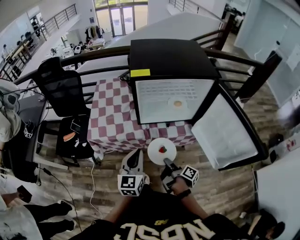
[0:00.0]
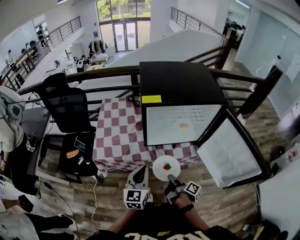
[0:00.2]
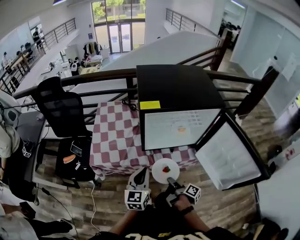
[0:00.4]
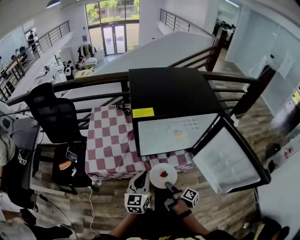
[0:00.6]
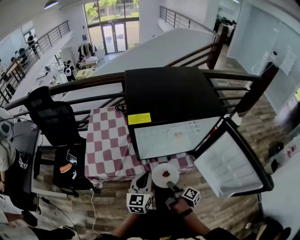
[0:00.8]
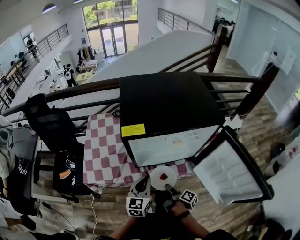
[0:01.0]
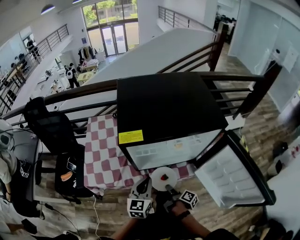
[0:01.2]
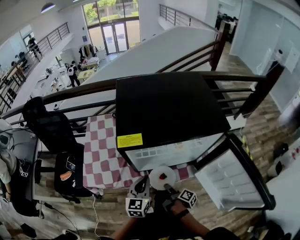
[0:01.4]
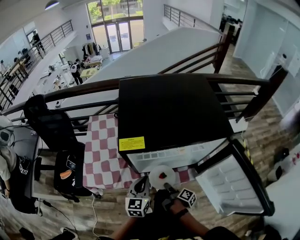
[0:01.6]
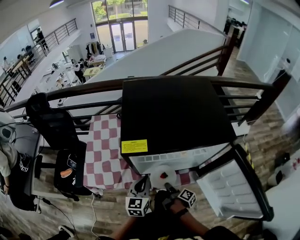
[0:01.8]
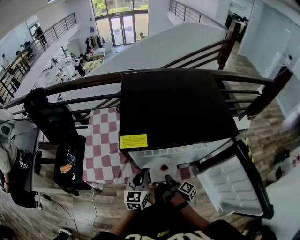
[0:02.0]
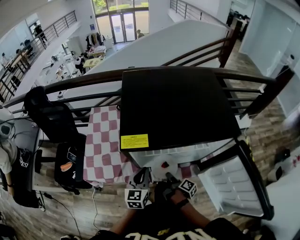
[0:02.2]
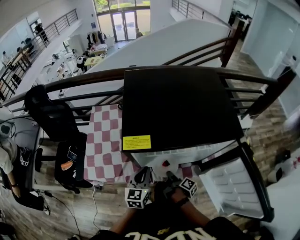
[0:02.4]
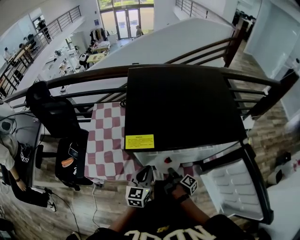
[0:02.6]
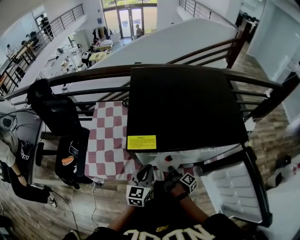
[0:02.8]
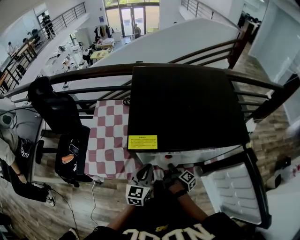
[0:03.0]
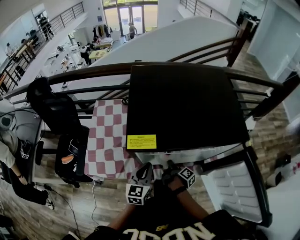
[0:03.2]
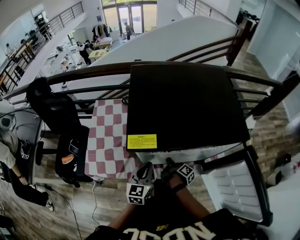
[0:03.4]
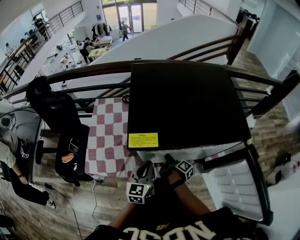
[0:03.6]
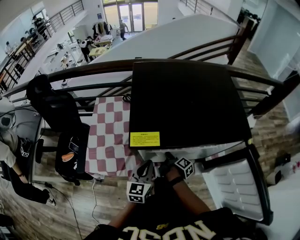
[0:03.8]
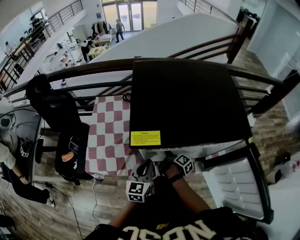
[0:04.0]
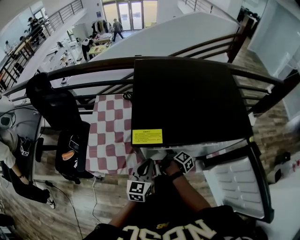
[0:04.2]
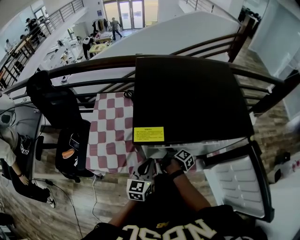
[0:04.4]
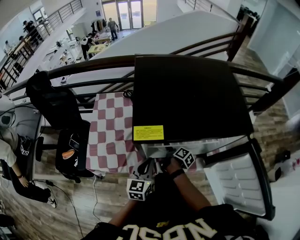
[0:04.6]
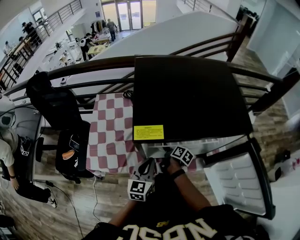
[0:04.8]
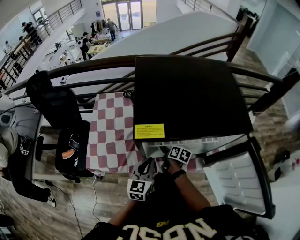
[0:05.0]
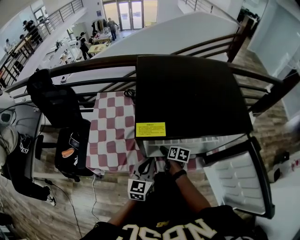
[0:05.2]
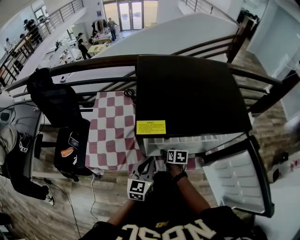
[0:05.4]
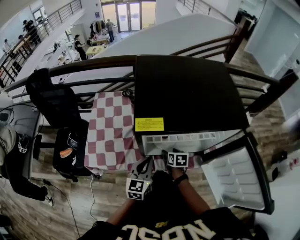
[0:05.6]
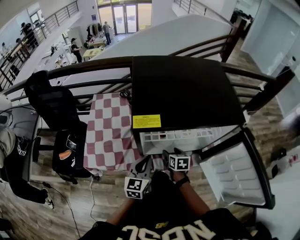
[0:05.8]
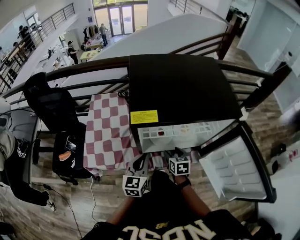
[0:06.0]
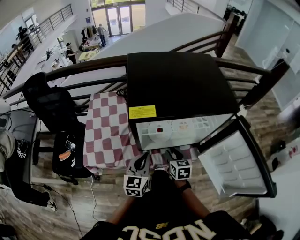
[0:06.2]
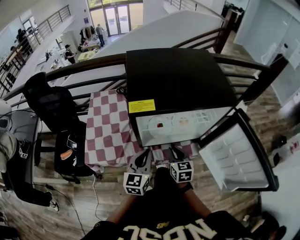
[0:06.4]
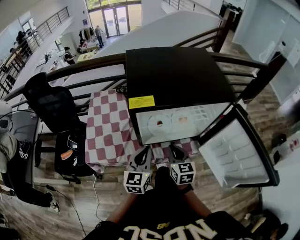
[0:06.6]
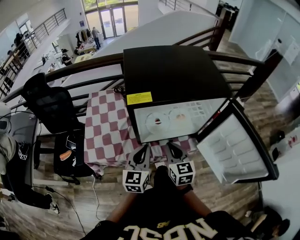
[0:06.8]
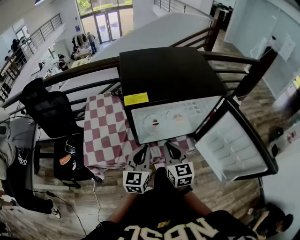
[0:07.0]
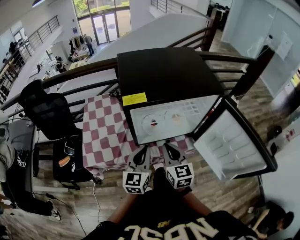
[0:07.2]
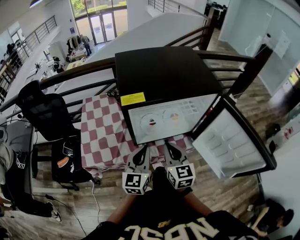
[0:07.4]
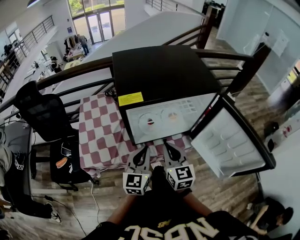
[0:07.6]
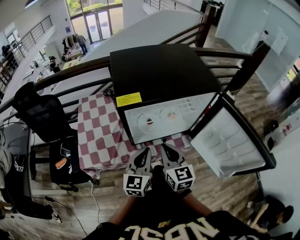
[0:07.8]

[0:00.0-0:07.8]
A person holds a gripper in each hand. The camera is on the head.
0:00.0 to 0:01.6: The left gripper ends up approximately 20 cm from where it was.
0:06.2 to 0:07.8: The left gripper heads upward, covering roughly 5 cm.

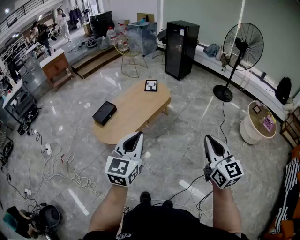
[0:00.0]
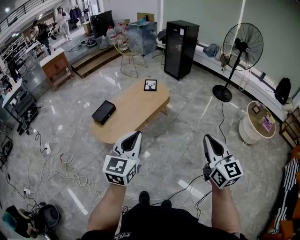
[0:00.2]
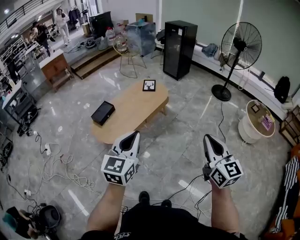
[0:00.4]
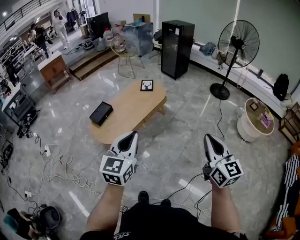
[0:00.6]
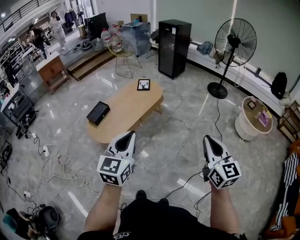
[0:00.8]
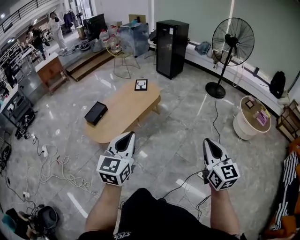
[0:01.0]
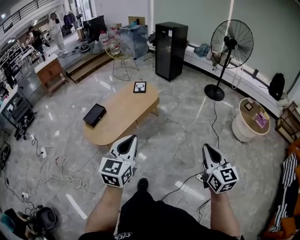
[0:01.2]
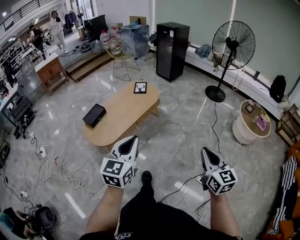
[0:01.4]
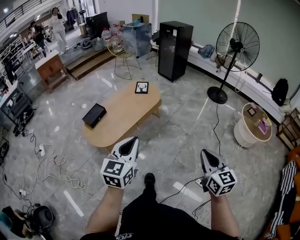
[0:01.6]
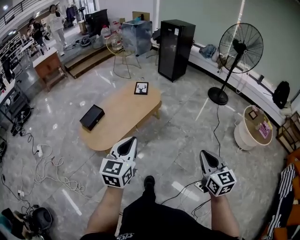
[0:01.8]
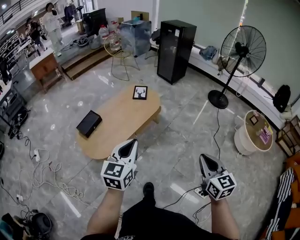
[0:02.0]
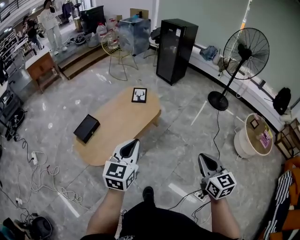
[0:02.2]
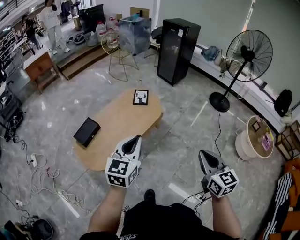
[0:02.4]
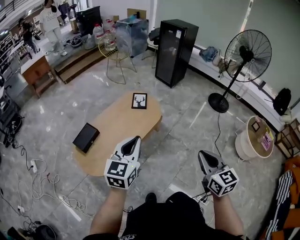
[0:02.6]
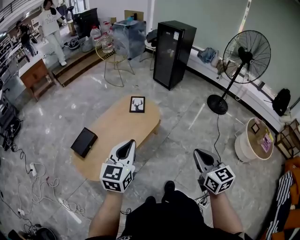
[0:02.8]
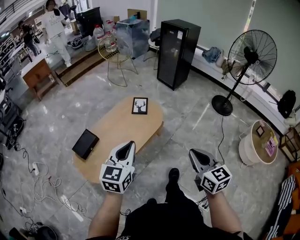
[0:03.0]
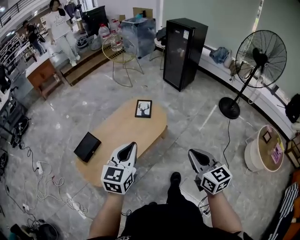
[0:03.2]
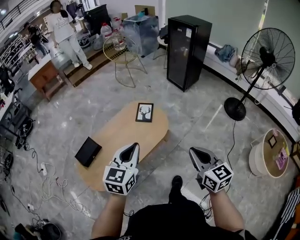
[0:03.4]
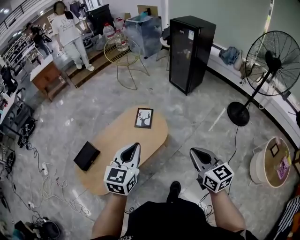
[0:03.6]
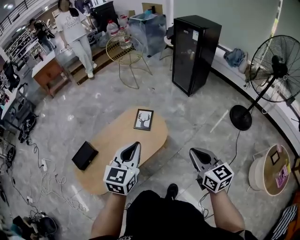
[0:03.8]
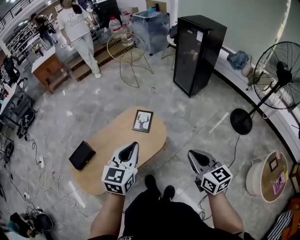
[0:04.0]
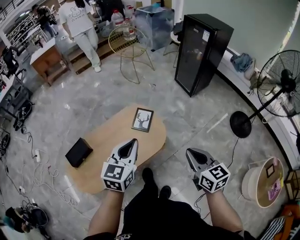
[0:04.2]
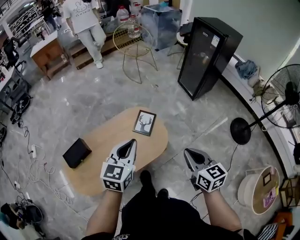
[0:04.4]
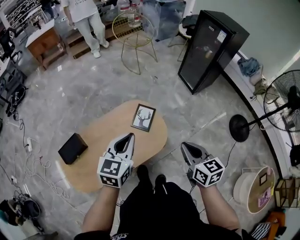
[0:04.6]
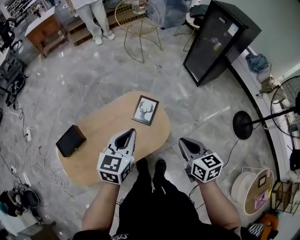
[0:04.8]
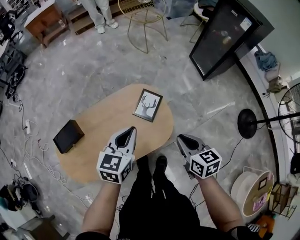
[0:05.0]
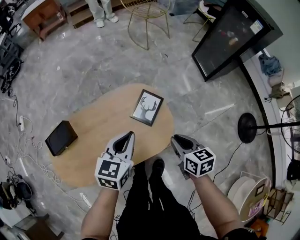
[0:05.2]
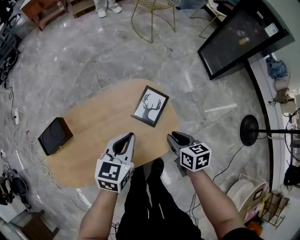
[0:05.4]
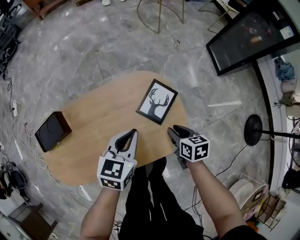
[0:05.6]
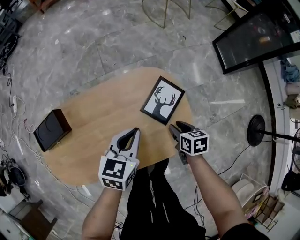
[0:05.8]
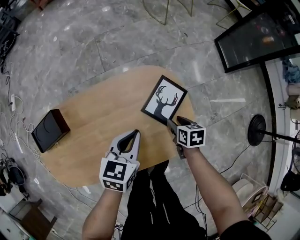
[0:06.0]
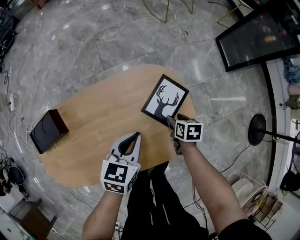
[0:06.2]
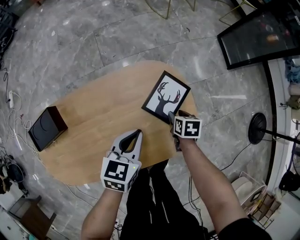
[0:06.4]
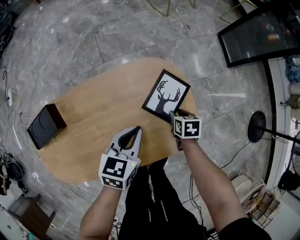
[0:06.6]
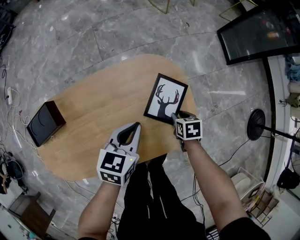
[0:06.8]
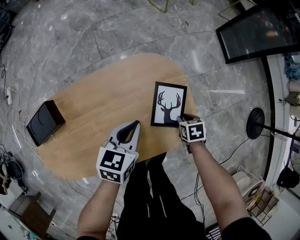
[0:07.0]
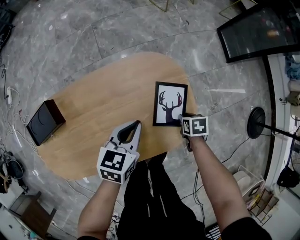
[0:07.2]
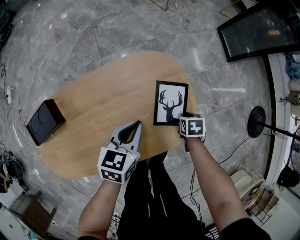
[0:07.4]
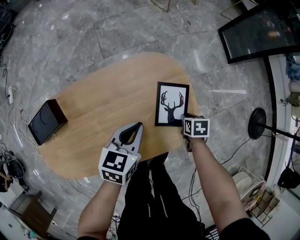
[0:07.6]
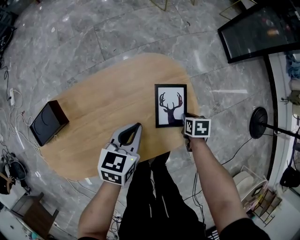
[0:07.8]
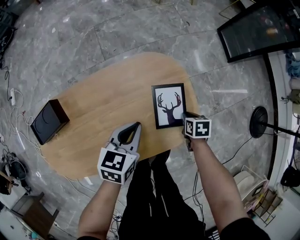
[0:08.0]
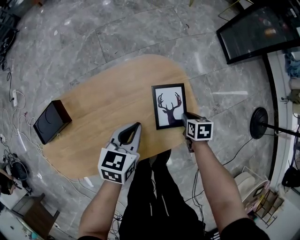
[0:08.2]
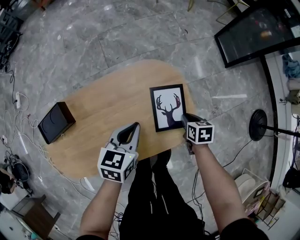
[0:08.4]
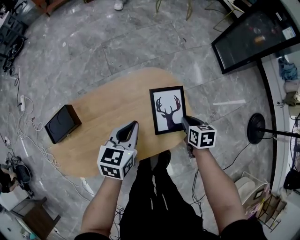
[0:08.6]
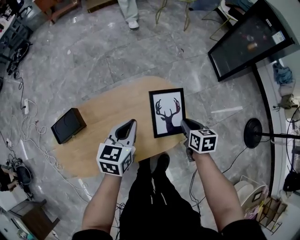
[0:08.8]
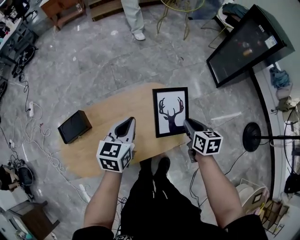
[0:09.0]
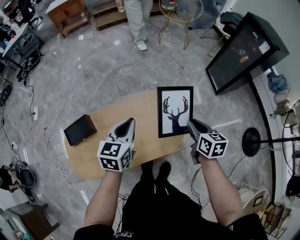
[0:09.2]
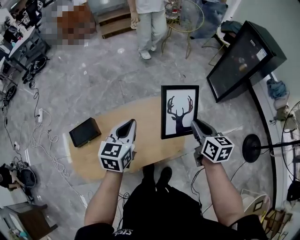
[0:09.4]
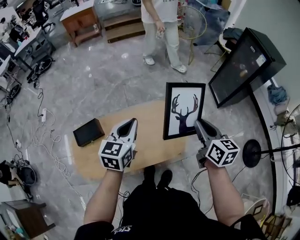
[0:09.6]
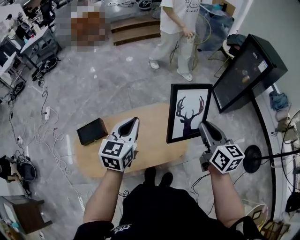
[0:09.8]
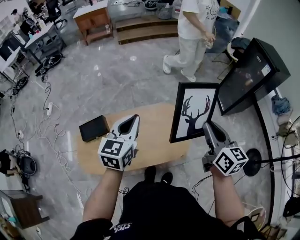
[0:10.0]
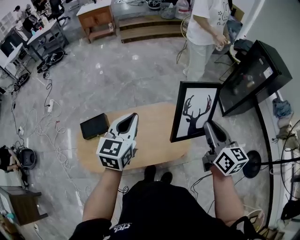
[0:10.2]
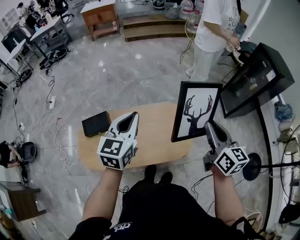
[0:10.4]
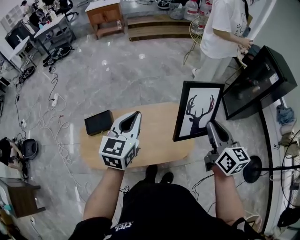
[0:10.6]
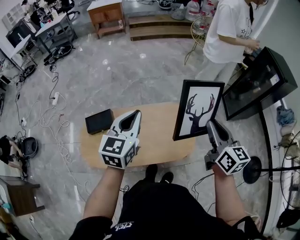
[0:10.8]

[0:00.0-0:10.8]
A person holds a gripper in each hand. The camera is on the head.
0:00.0 to 0:01.6: The left gripper travels to the right by roughly 5 cm; the right gripper shifts approximately 15 cm to the right and downward.
0:01.6 to 0:03.0: The grippers both shift forward by some 40 cm.
0:03.0 to 0:04.6: The grippers both shift forward by some 40 cm. The right gripper swivels about 20 degrees.
0:04.6 to 0:06.2: The left gripper heads downward, covering approximately 35 cm, and changes its angle by some 20 degrees; the right gripper shifts some 60 cm downward and forward, tips its fingers downward by some 40 degrees, and opens up.
0:06.2 to 0:07.8: The right gripper moves some 10 cm, and closes up.
0:07.8 to 0:09.2: The grippers both shift upward by roughly 35 cm. The right gripper tips its fingers upward by approximately 40 degrees.
0:09.2 to 0:10.8: Both grippers move upward, some 20 cm. The right gripper changes its angle by approximately 30 degrees.

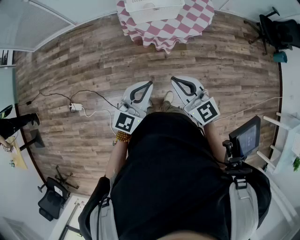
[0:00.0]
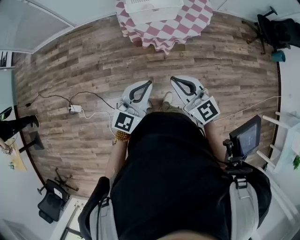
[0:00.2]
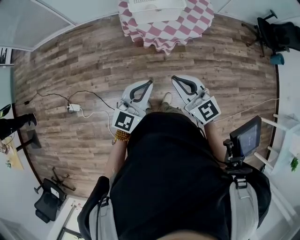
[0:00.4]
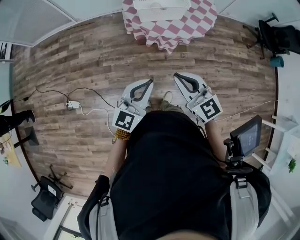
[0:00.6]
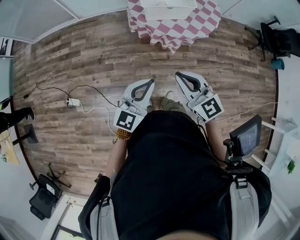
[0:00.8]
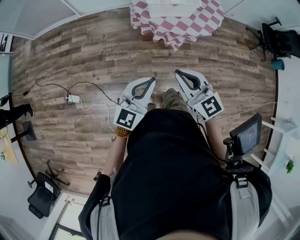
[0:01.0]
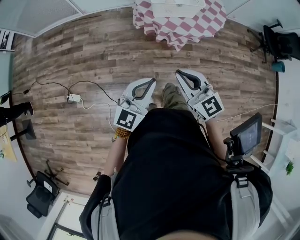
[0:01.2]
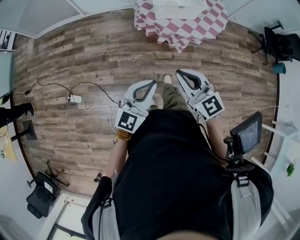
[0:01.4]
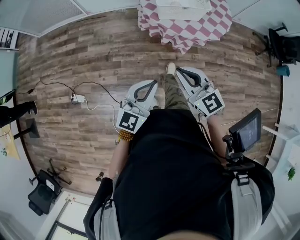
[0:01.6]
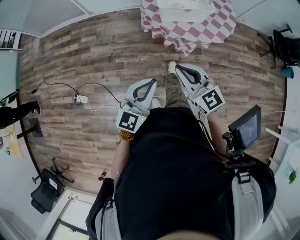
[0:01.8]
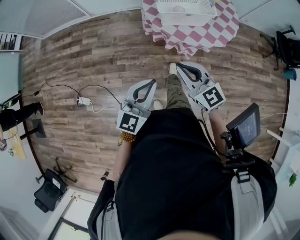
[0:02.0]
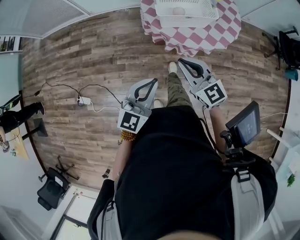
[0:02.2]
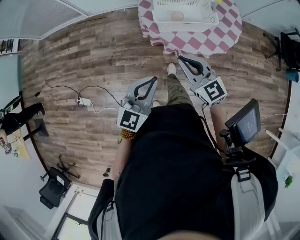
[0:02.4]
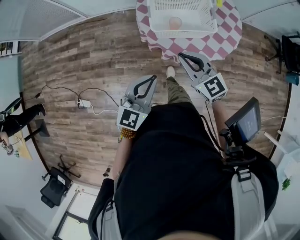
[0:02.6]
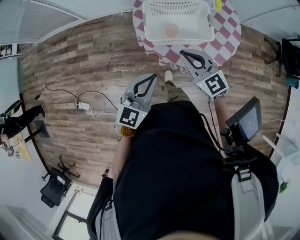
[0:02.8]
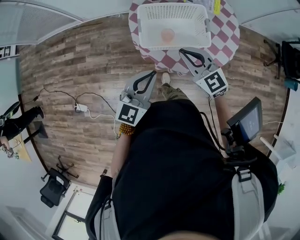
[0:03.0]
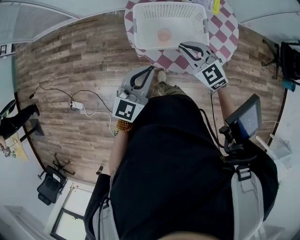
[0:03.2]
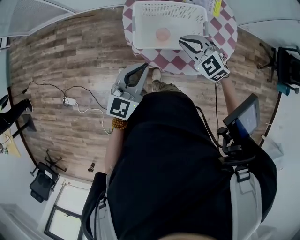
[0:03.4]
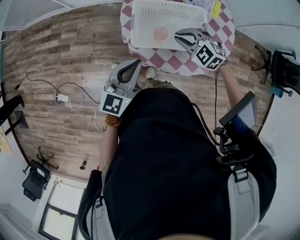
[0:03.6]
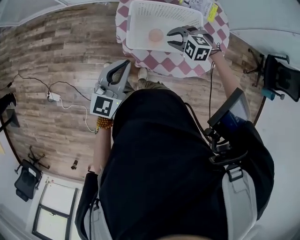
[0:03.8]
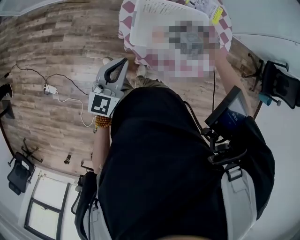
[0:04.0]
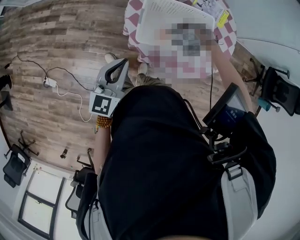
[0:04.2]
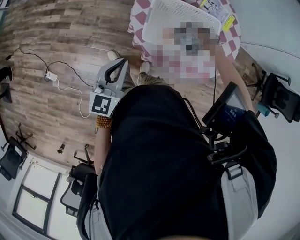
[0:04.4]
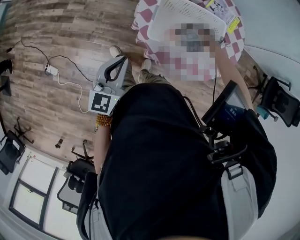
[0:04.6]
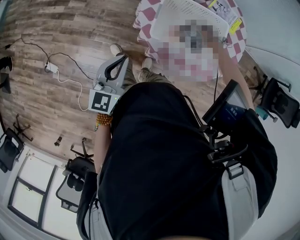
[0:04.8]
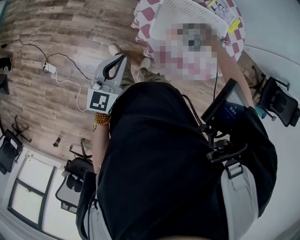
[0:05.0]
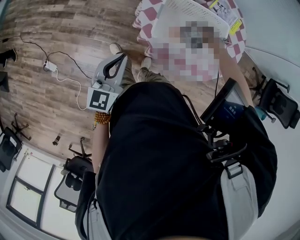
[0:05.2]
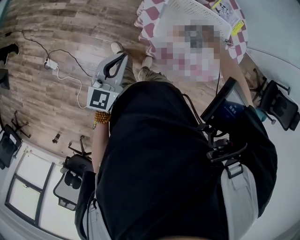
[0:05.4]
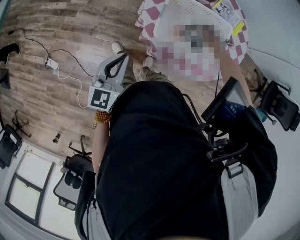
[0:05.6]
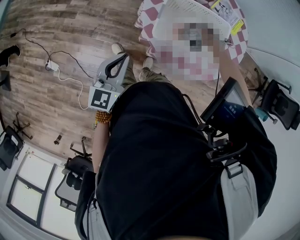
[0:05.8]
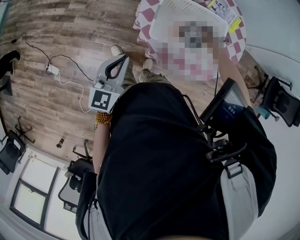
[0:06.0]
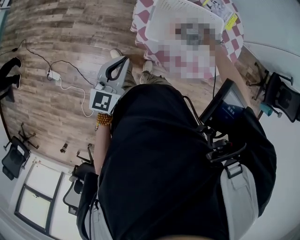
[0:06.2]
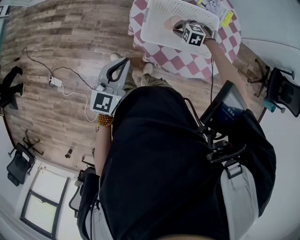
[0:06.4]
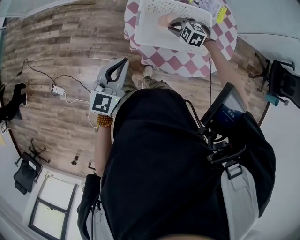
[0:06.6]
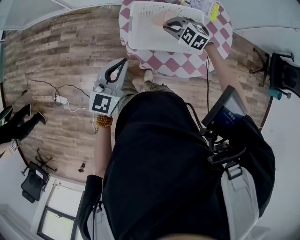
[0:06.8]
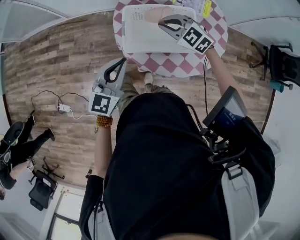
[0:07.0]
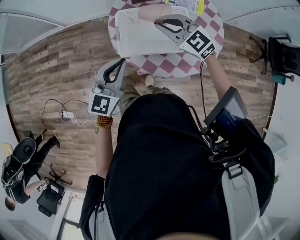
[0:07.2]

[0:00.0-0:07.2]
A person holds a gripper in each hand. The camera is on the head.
0:00.0 to 0:01.4: Both grippers move to the left, about 10 cm.
0:01.4 to 0:02.8: Both grippers move forward, about 35 cm.
0:02.8 to 0:04.4: The left gripper shifts by approximately 15 cm, and rotates some 20 degrees; the right gripper travels downward by approximately 30 cm, tips its fingers downward by some 70 degrees, and opens up.
0:04.4 to 0:05.8: The right gripper closes its fingers.
0:05.8 to 0:07.2: The right gripper goes about 35 cm upward, and angles its fingers upward, by approximately 70 degrees; the left gripper shifts by approximately 15 cm, and rotates some 20 degrees.
